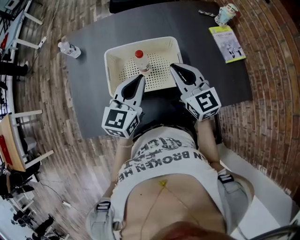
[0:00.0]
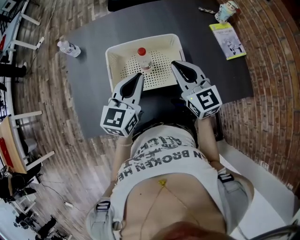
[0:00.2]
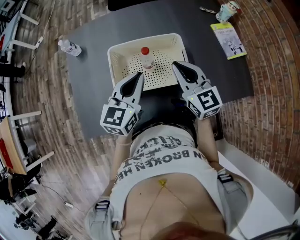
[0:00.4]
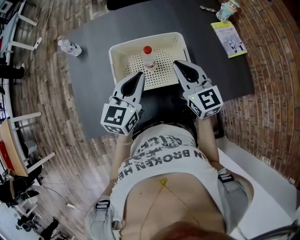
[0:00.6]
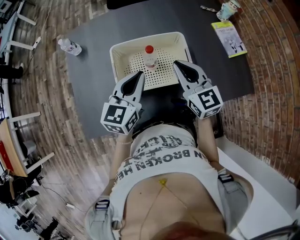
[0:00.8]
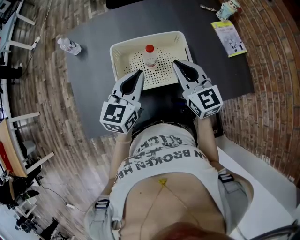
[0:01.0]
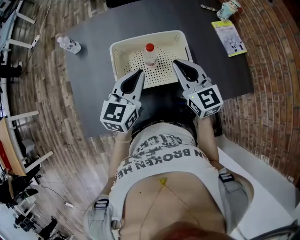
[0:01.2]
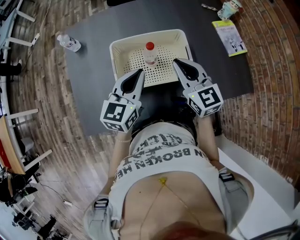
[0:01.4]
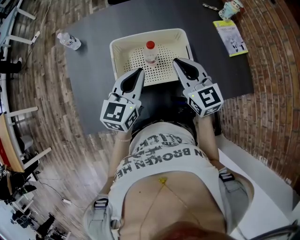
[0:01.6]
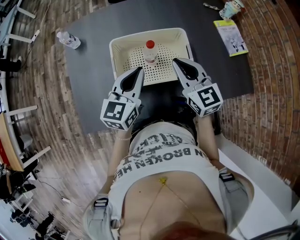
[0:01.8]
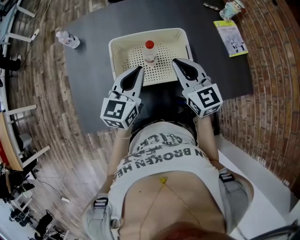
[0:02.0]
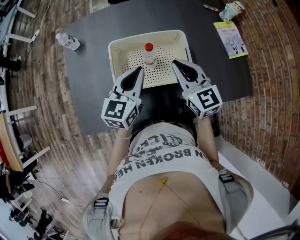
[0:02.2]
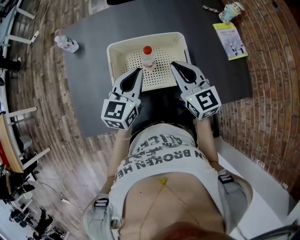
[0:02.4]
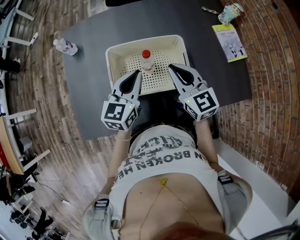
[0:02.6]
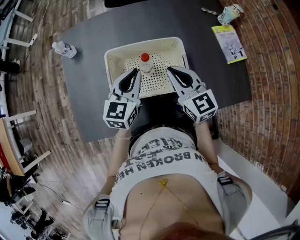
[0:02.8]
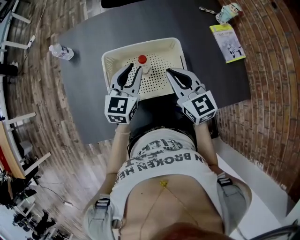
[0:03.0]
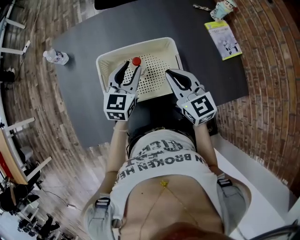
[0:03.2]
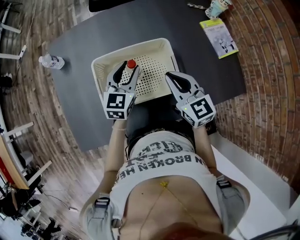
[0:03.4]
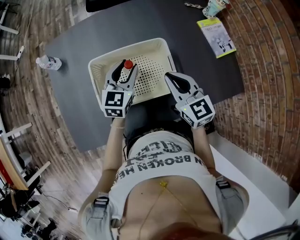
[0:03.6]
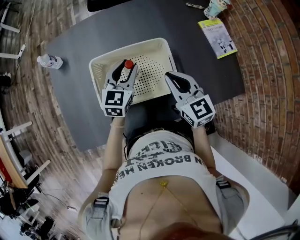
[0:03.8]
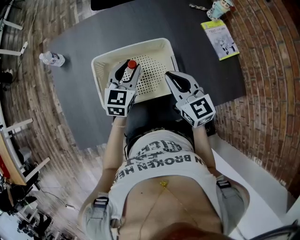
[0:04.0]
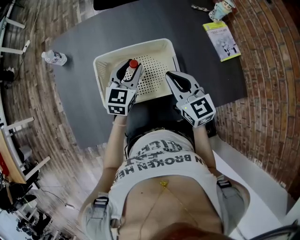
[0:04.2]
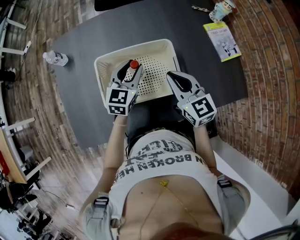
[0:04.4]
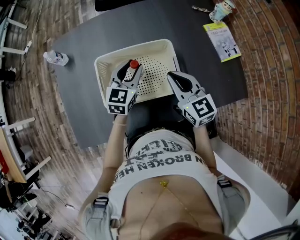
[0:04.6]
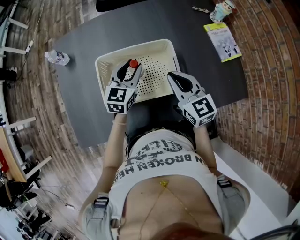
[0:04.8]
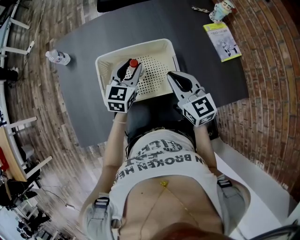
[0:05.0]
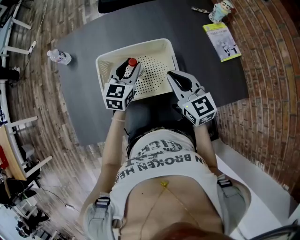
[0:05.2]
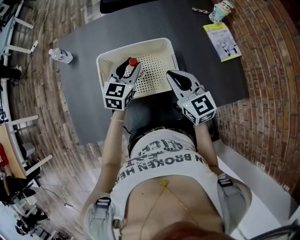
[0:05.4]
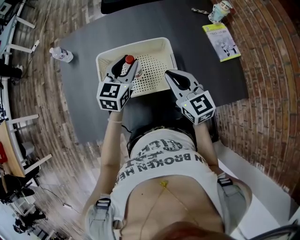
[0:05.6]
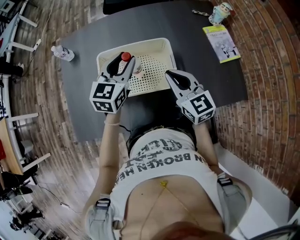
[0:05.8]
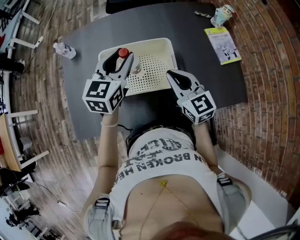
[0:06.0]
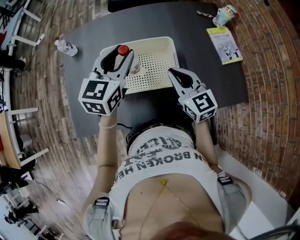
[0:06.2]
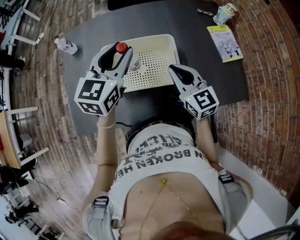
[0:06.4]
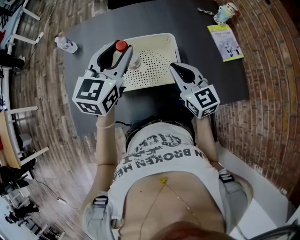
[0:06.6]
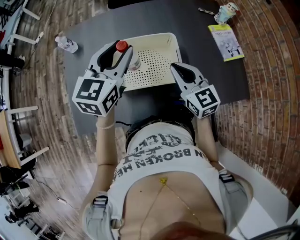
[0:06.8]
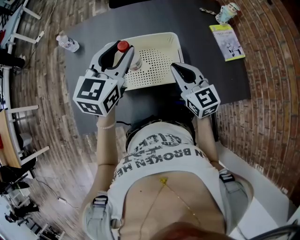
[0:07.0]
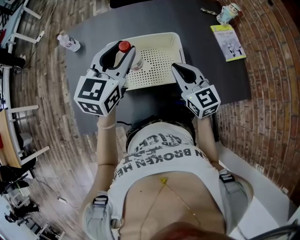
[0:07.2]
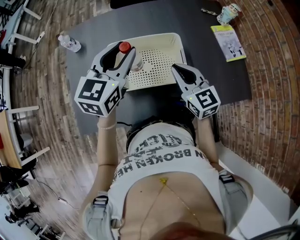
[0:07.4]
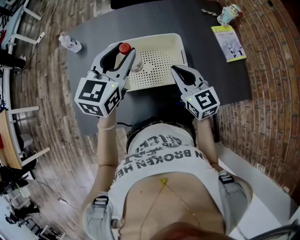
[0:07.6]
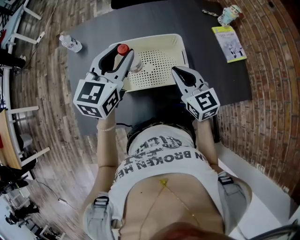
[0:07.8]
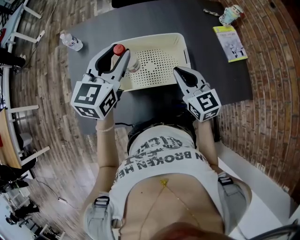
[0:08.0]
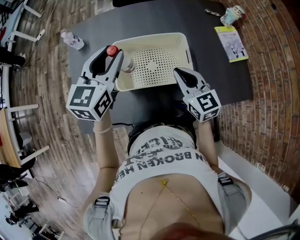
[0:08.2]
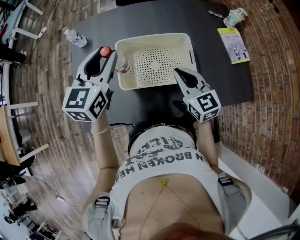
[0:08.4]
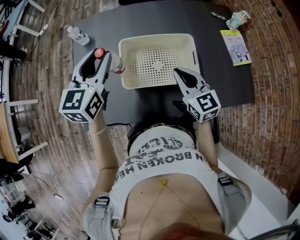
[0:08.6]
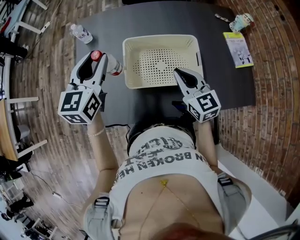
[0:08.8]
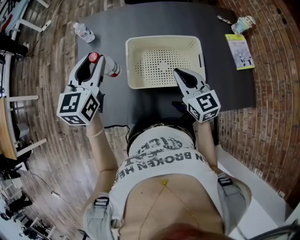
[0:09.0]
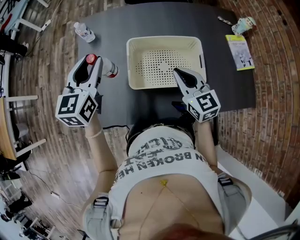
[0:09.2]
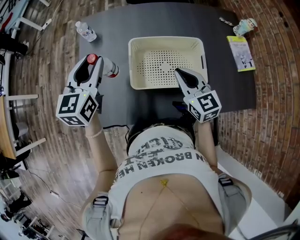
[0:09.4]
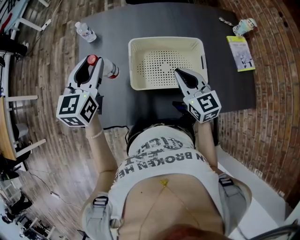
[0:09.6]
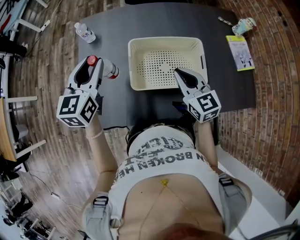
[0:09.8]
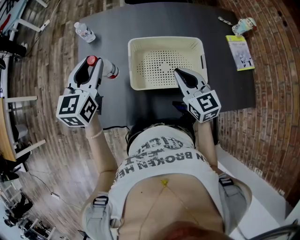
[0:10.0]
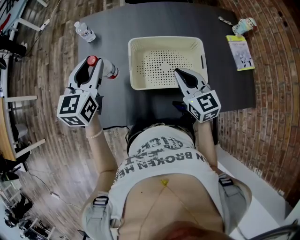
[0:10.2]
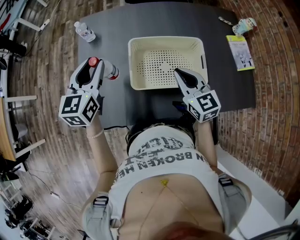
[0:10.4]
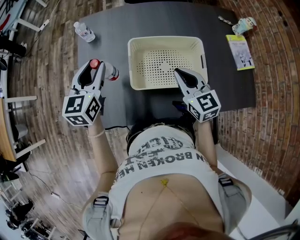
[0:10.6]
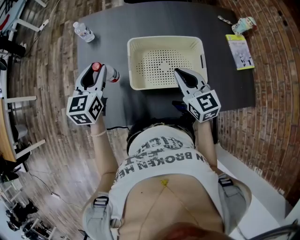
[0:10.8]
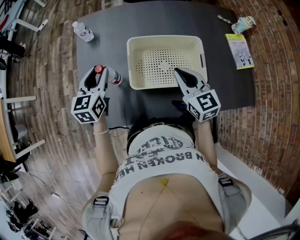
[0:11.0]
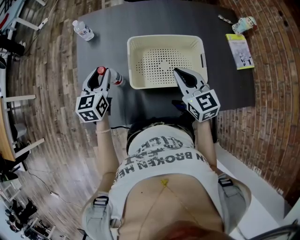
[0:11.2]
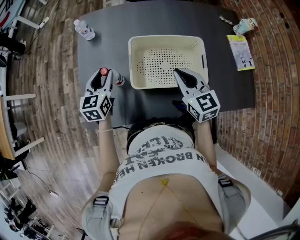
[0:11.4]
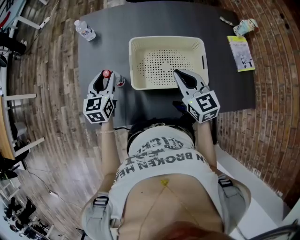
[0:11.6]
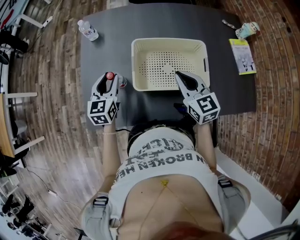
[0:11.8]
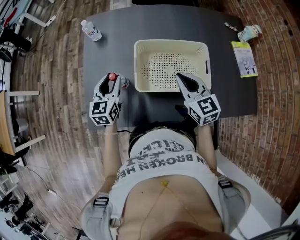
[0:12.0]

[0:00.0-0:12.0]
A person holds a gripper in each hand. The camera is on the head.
0.0 to 1.6 s: The left gripper shifts roughly 5 cm to the left.
1.6 to 3.0 s: The left gripper is displaced forward by approximately 10 cm.
3.0 to 4.4 s: The left gripper moves about 5 cm.
4.4 to 6.0 s: The left gripper heads upward, covering some 10 cm.
6.0 to 7.6 s: The left gripper changes place by some 5 cm.
7.6 to 9.0 s: The left gripper is displaced to the left by approximately 20 cm, while the right gripper is displaced to the left by some 10 cm.
9.0 to 10.4 s: The grippers move only a little.
10.4 to 12.0 s: The left gripper heads downward, covering approximately 15 cm.

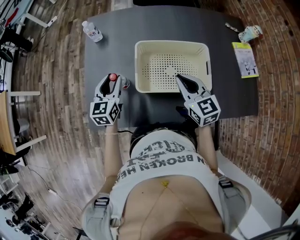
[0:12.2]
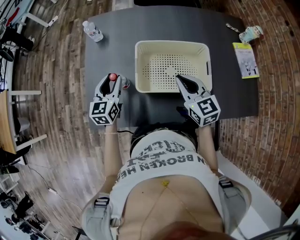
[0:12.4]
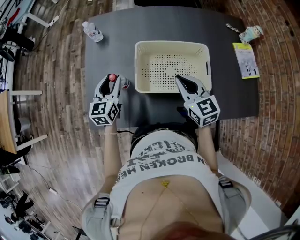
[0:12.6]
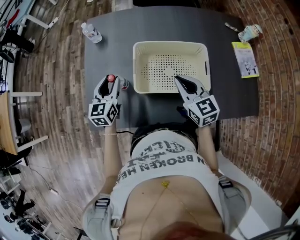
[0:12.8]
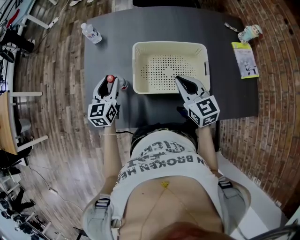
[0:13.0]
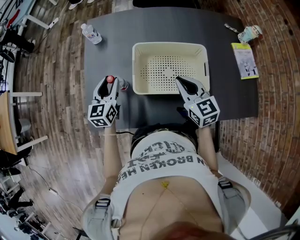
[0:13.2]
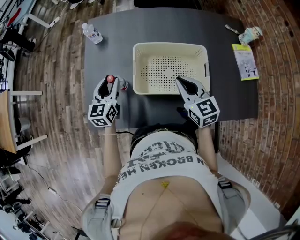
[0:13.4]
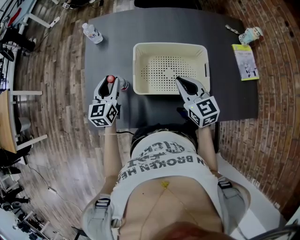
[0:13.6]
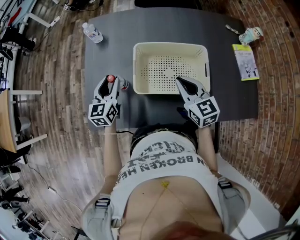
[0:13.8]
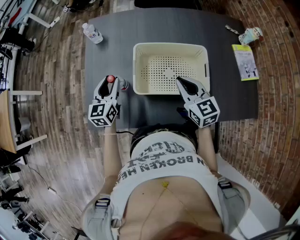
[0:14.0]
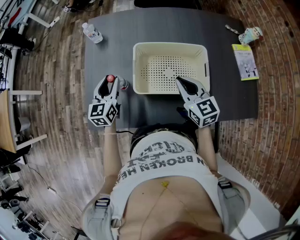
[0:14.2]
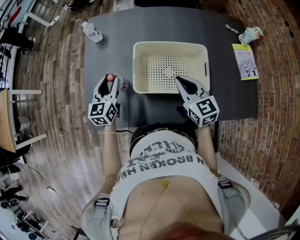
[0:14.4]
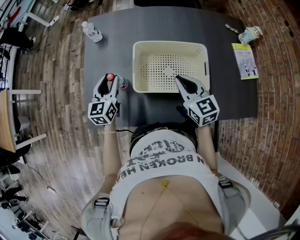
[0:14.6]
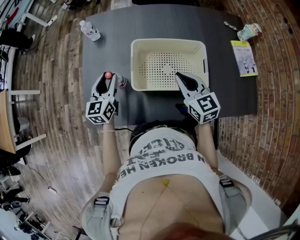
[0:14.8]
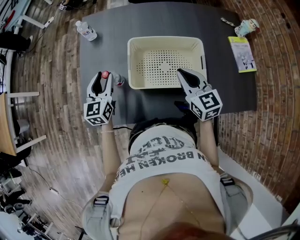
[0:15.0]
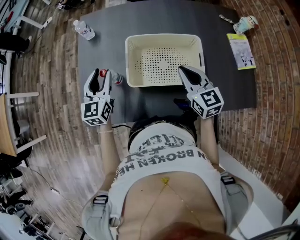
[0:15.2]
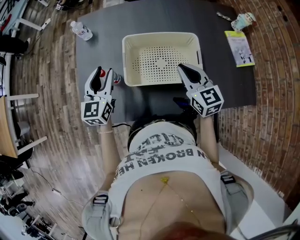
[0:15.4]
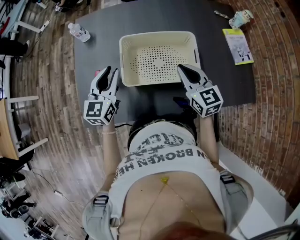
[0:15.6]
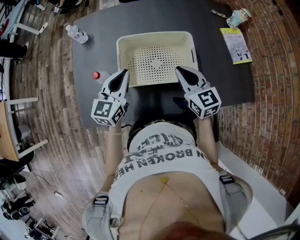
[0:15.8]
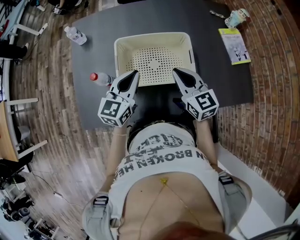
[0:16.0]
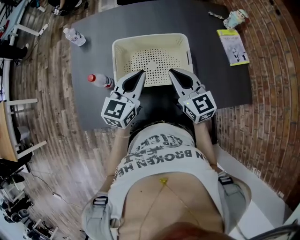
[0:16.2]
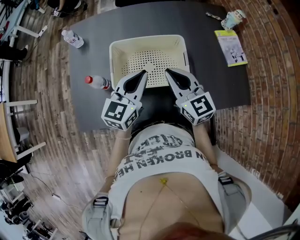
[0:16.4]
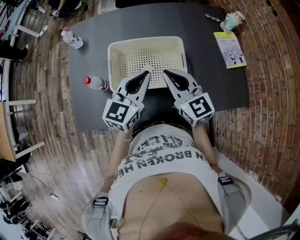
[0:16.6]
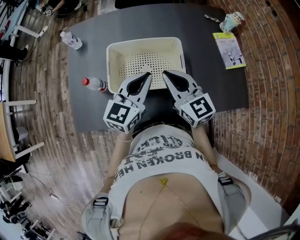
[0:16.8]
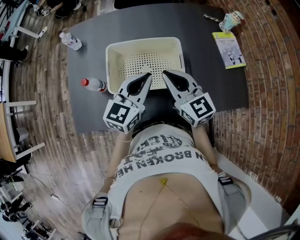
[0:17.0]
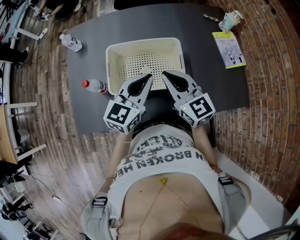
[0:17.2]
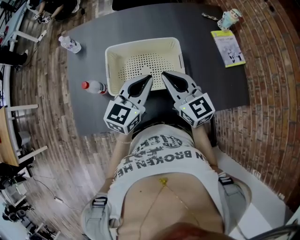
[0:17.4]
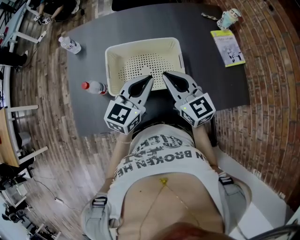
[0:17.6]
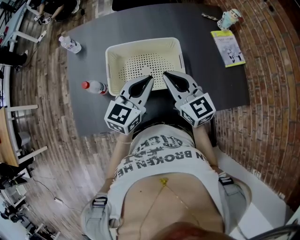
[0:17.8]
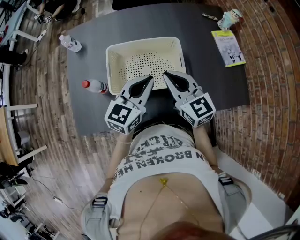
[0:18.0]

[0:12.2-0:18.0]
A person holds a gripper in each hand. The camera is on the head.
12.2 to 15.0 s: The grippers stay close to where they were, moving slightly.
15.0 to 16.6 s: The right gripper ends up some 5 cm from where it was. The left gripper shifts roughly 25 cm to the right, changes its angle by about 30 degrees, and closes.
16.6 to 18.0 s: There are only small adjustments of the grippers.

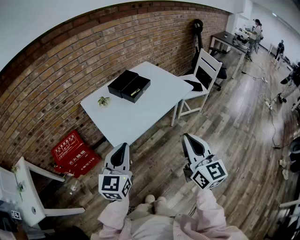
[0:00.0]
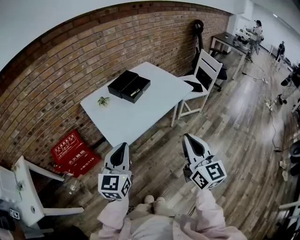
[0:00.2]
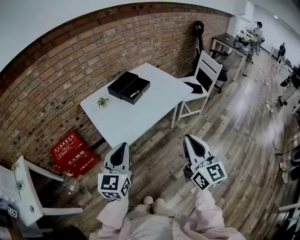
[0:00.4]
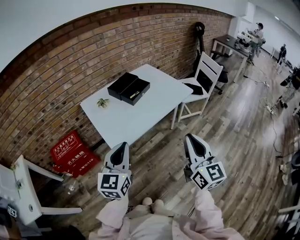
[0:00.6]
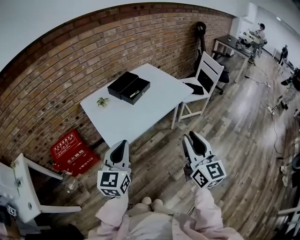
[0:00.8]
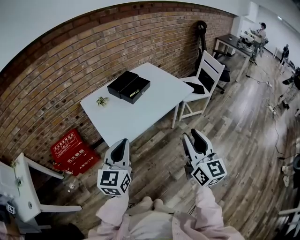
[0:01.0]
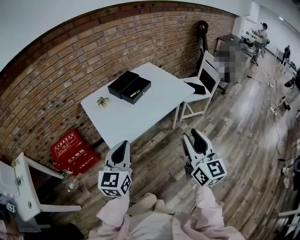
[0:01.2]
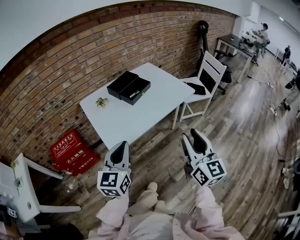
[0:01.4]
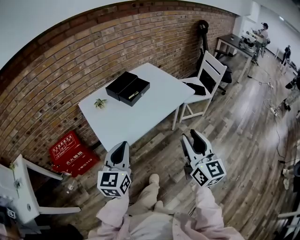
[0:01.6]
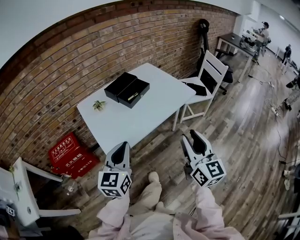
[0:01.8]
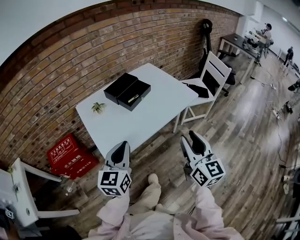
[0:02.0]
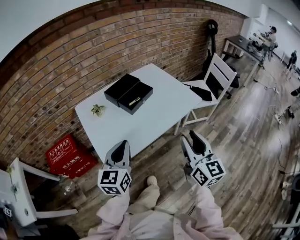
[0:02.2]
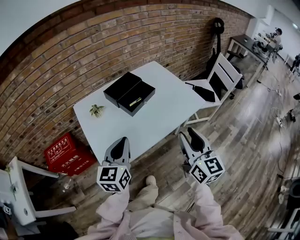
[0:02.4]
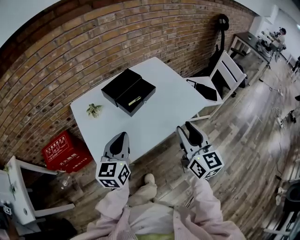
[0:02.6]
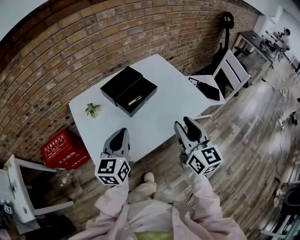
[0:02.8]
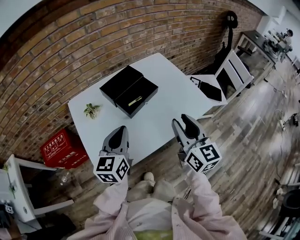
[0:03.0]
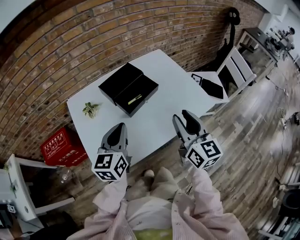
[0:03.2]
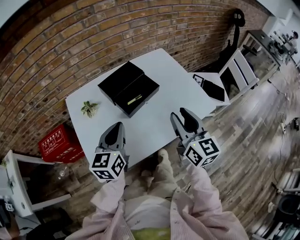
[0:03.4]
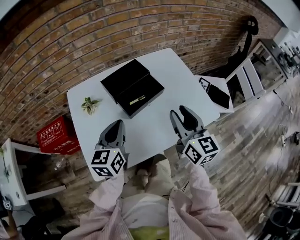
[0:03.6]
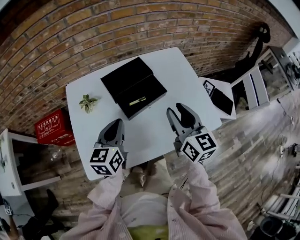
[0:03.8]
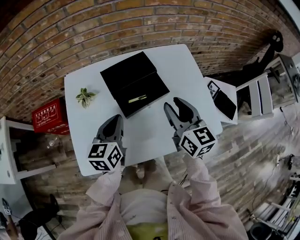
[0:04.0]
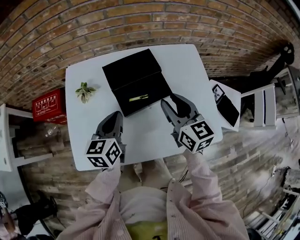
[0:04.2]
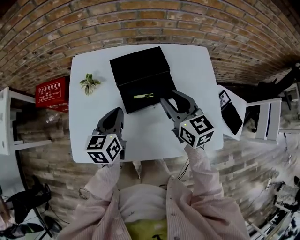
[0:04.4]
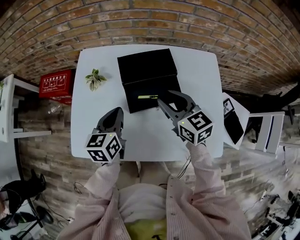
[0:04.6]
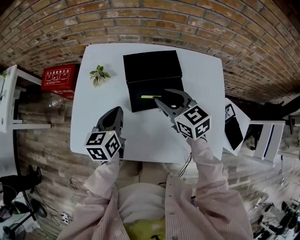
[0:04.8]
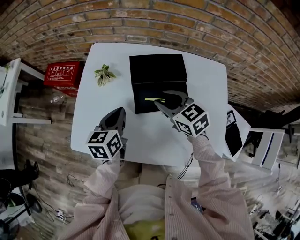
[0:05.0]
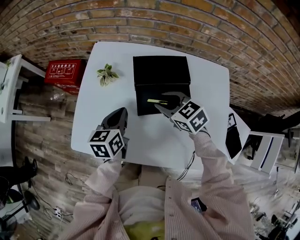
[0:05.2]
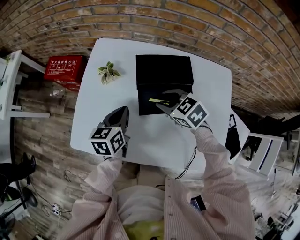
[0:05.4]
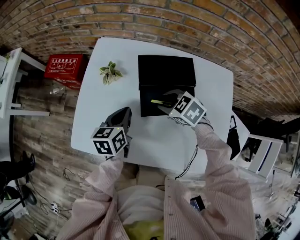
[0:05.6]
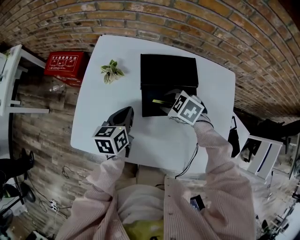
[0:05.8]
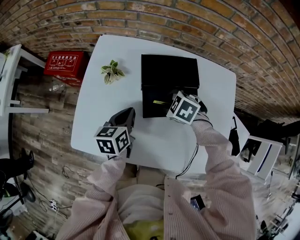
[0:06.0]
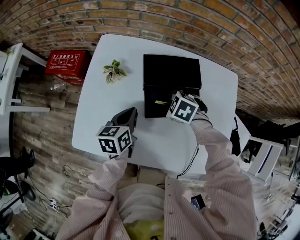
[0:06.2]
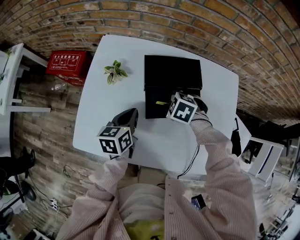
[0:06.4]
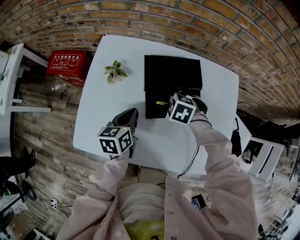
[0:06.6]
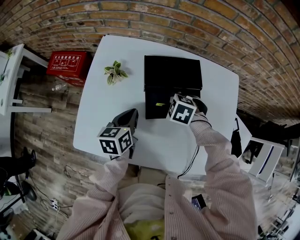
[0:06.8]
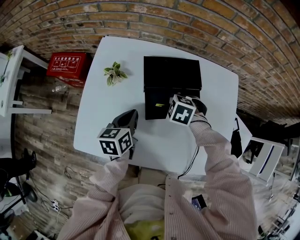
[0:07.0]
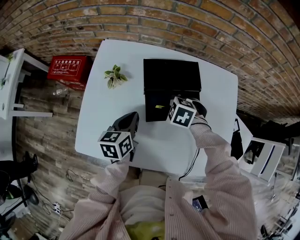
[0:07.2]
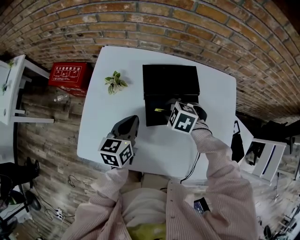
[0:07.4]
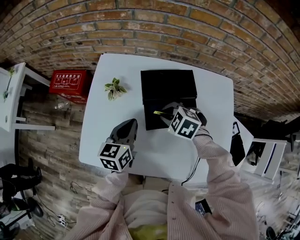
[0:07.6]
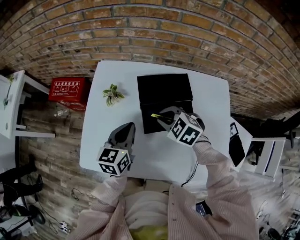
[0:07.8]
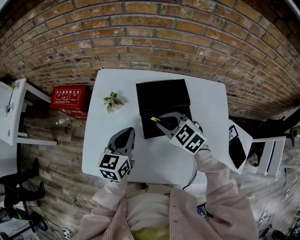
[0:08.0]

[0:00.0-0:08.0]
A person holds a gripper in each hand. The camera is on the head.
0.0 to 1.6 s: The left gripper changes place by some 5 cm, while the right gripper moves forward and to the right, some 10 cm, and opens up.
1.6 to 3.2 s: Both grippers move forward, approximately 30 cm.
3.2 to 4.8 s: The left gripper goes about 10 cm downward, and turns by about 40 degrees. The right gripper ends up roughly 30 cm from where it was, and turns by approximately 60 degrees.
4.8 to 6.4 s: The left gripper is displaced downward by approximately 5 cm. Meanwhile the right gripper shifts some 15 cm downward, and angles its fingers downward, by roughly 50 degrees.
6.4 to 8.0 s: The two grippers go approximately 10 cm upward. The left gripper turns by about 20 degrees. Meanwhile the right gripper rotates some 30 degrees.
